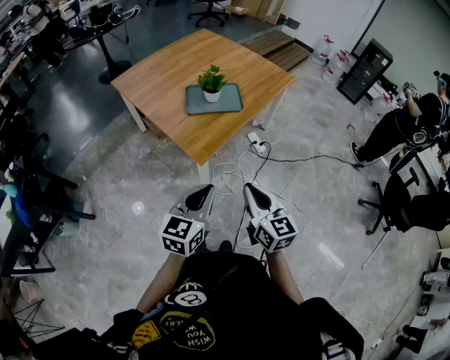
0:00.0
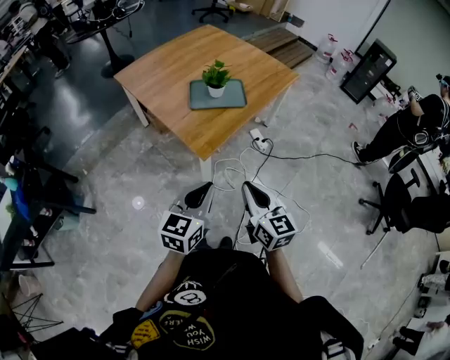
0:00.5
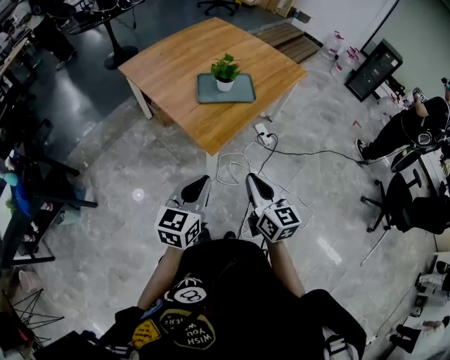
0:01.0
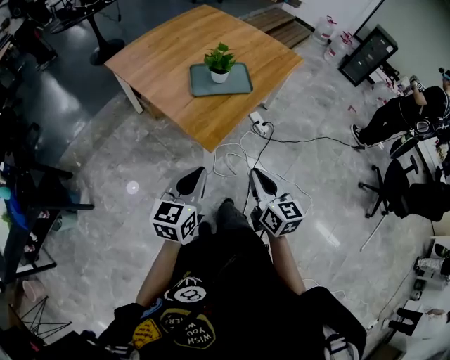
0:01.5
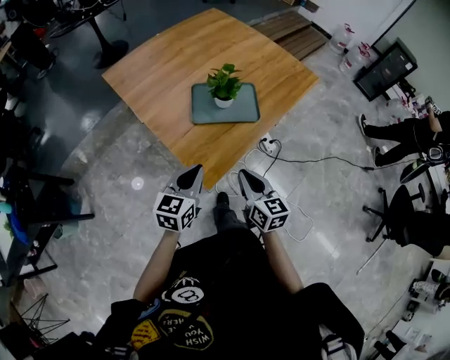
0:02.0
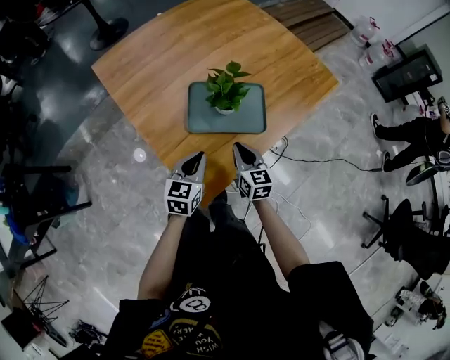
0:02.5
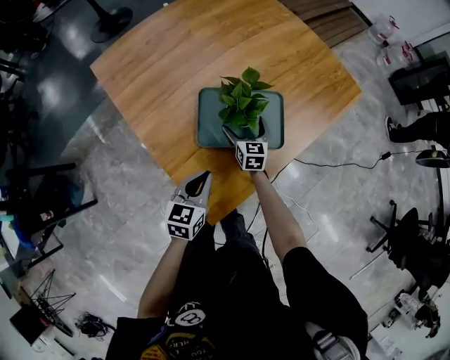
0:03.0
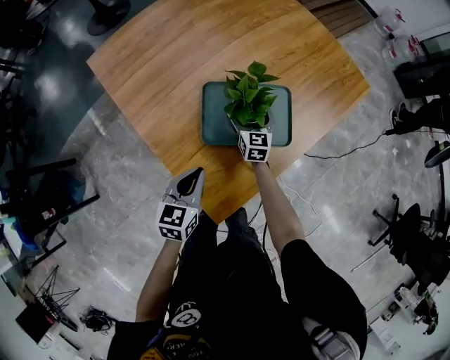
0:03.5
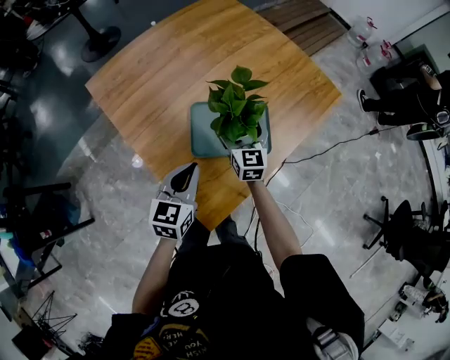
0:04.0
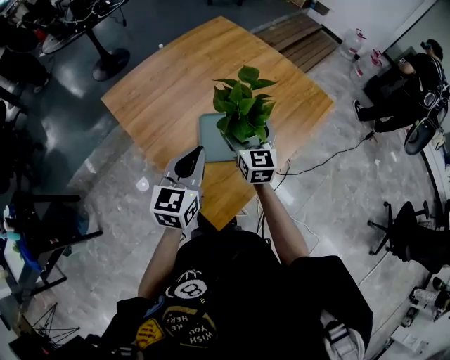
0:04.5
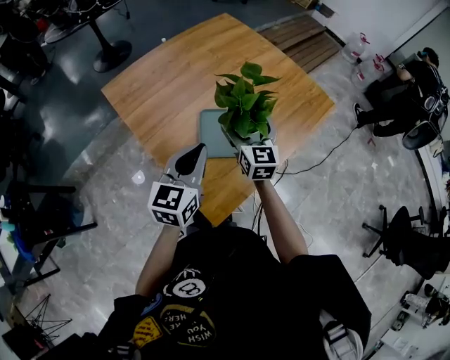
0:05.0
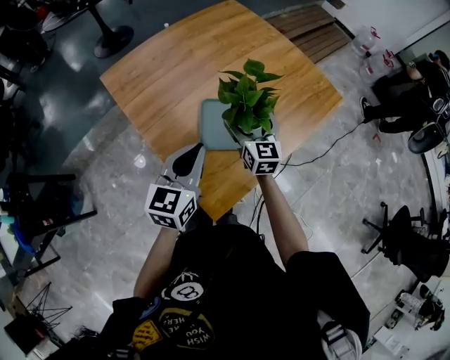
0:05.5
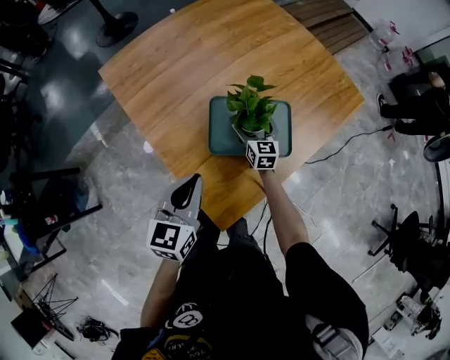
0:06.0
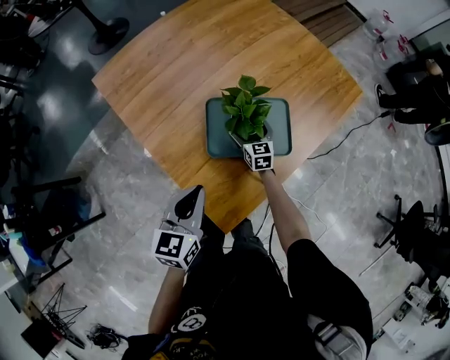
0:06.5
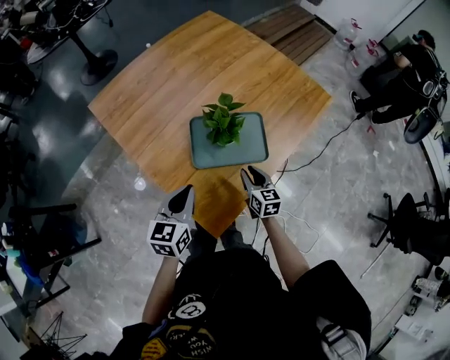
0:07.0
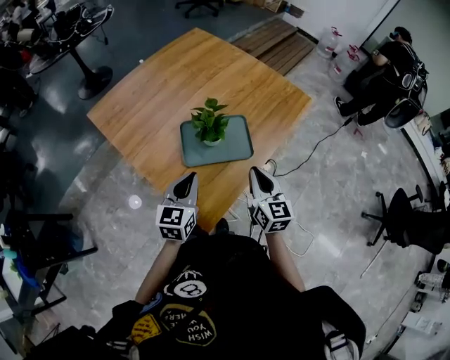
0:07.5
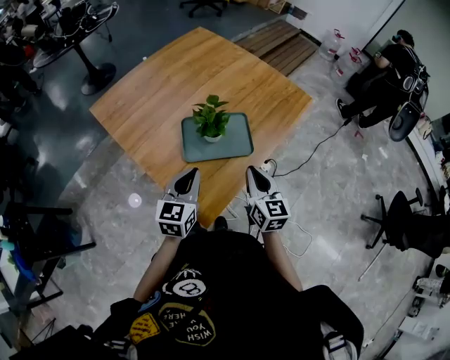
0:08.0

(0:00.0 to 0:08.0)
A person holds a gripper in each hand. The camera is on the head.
0:00.0 - 0:02.0: The right gripper goes some 25 cm forward and downward; the left gripper moves forward, about 25 cm.
0:02.0 - 0:04.0: The left gripper goes about 20 cm forward. Meanwhile the right gripper is displaced forward by about 40 cm, and opens.
0:04.0 - 0:06.0: The left gripper travels upward and back again, approximately 10 cm each way. The right gripper heads downward, covering some 15 cm.
0:06.0 - 0:08.0: The right gripper moves backward, upward and to the right, roughly 35 cm, and closes; the left gripper shifts some 10 cm to the right.

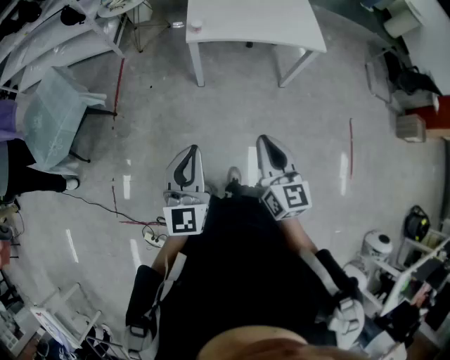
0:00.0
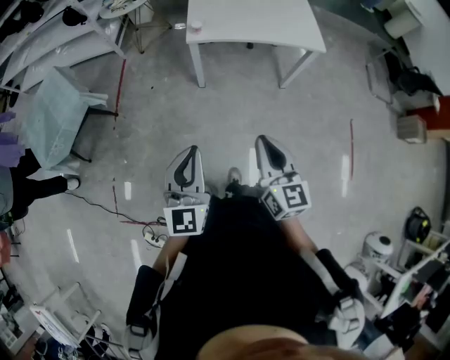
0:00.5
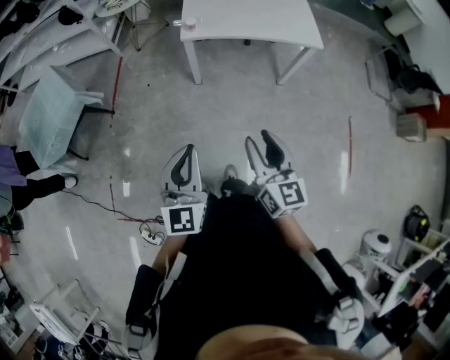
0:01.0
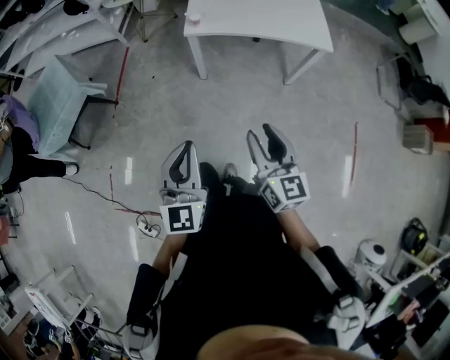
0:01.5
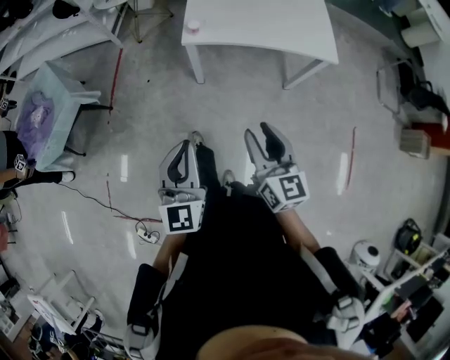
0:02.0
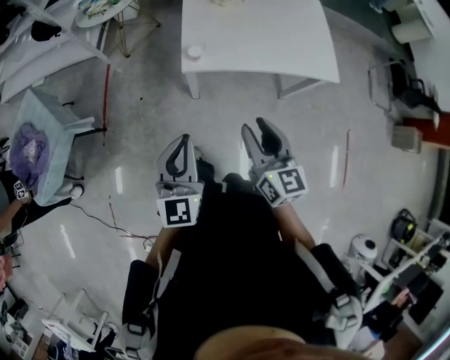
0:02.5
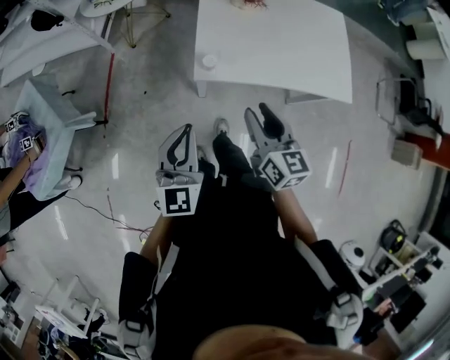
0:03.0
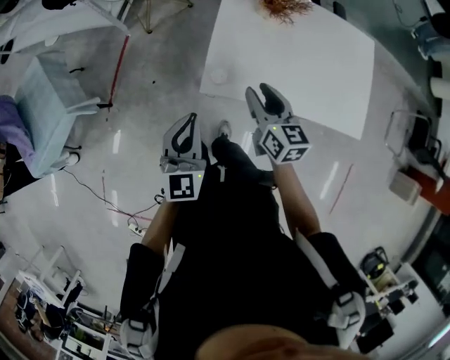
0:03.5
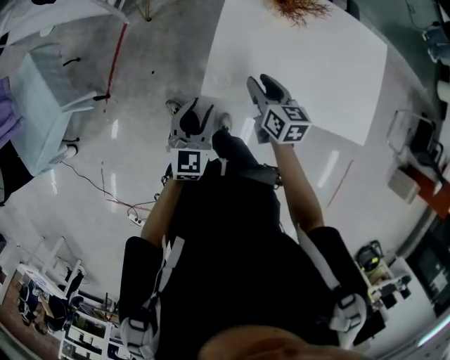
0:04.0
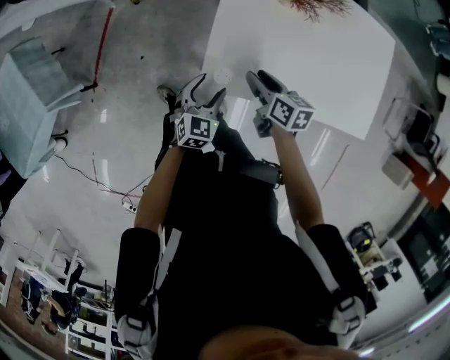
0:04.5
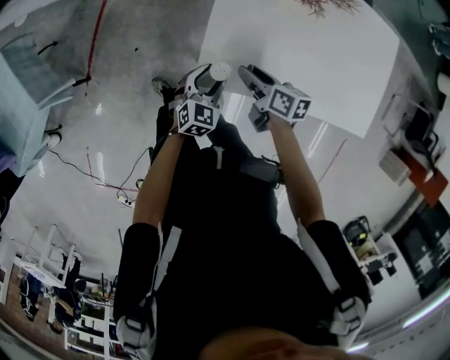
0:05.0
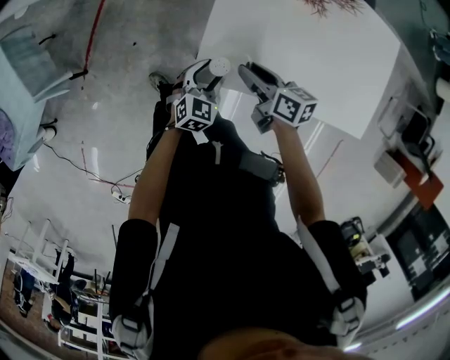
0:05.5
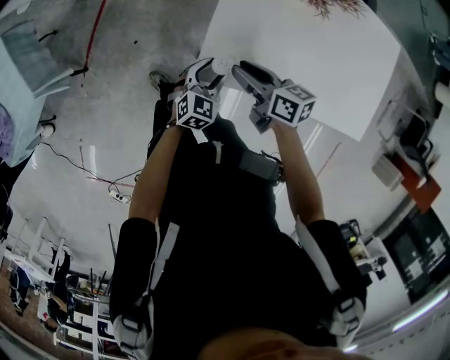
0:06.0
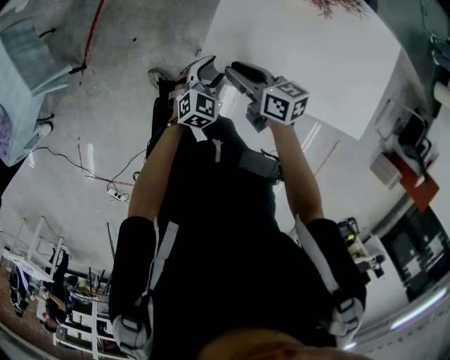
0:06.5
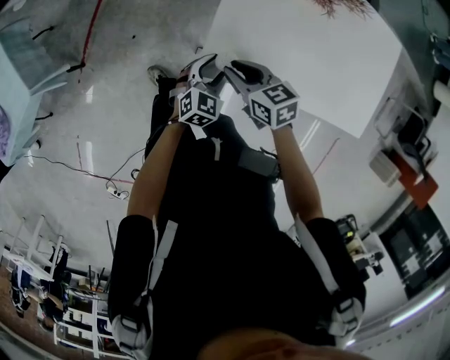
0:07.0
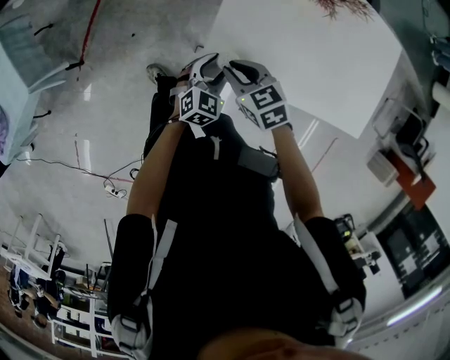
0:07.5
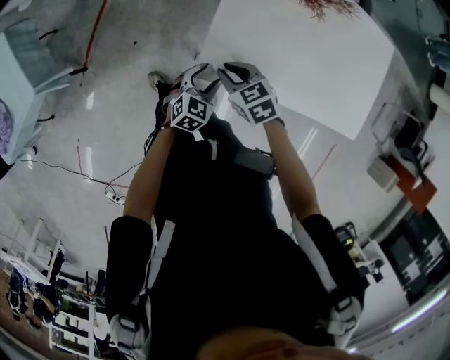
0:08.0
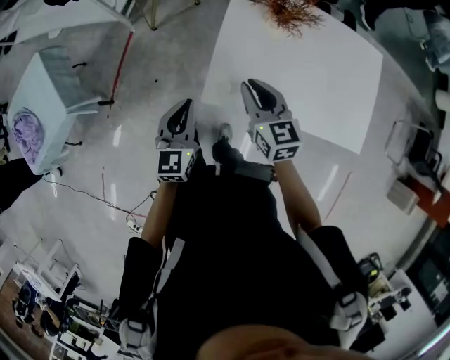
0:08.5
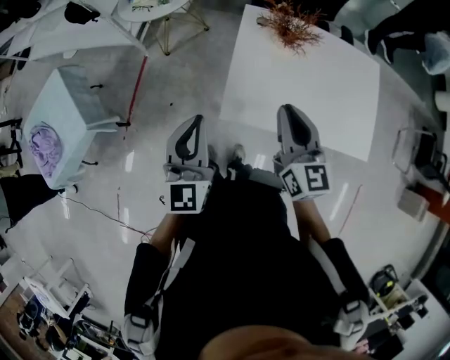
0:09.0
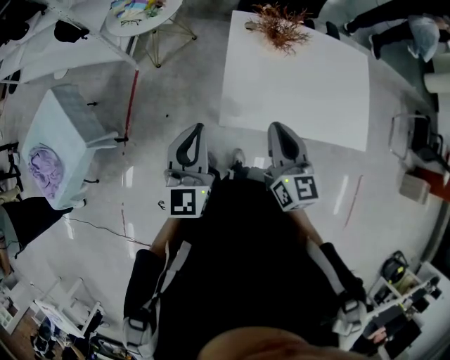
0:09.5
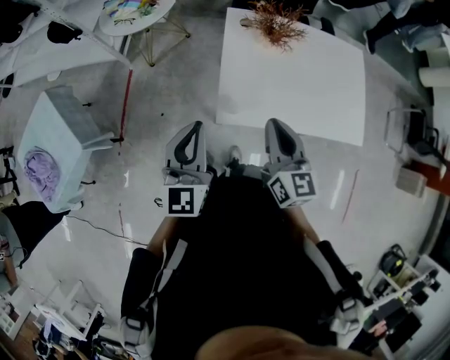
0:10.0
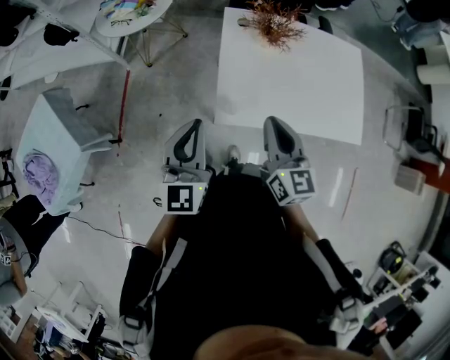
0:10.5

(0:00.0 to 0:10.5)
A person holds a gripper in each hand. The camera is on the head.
0:00.0 - 0:02.0: Both grippers travel together forward, about 15 cm. The right gripper opens.
0:02.0 - 0:04.0: The two grippers travel together, forward, some 50 cm. The right gripper rotates approximately 30 degrees. The left gripper opens up.
0:04.0 - 0:06.5: The left gripper goes about 15 cm downward, and turns by roughly 20 degrees. Meanwhile the right gripper goes some 10 cm to the left and downward, and changes its angle by some 30 degrees.
0:06.5 - 0:08.5: The right gripper moves upward, approximately 15 cm, and rotates some 40 degrees. The left gripper travels upward and to the left by approximately 25 cm, turns by some 30 degrees, and closes up.
0:08.5 - 0:10.5: The right gripper heads upward and backward, covering approximately 15 cm, and changes its angle by about 20 degrees; the left gripper is displaced upward by approximately 15 cm.

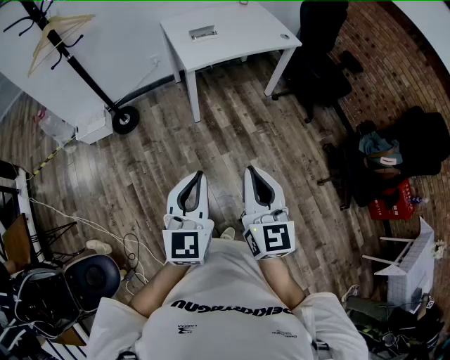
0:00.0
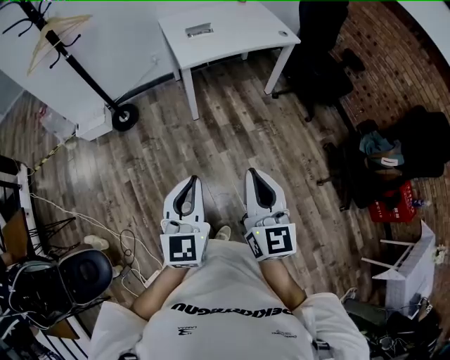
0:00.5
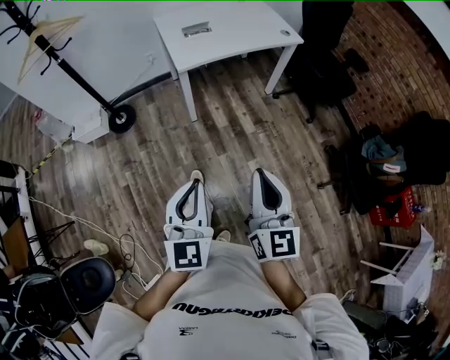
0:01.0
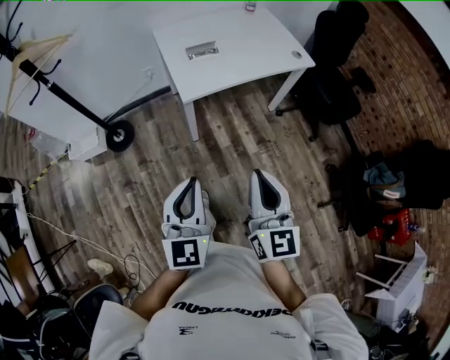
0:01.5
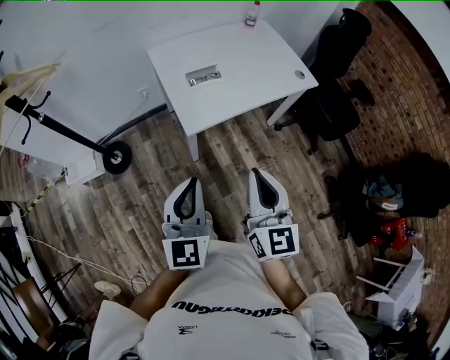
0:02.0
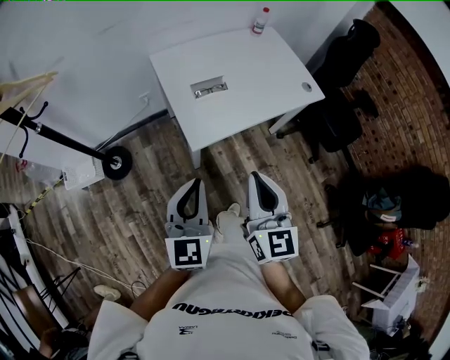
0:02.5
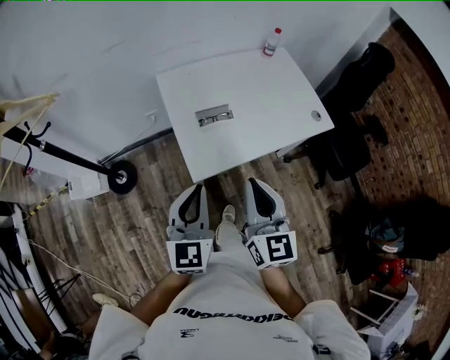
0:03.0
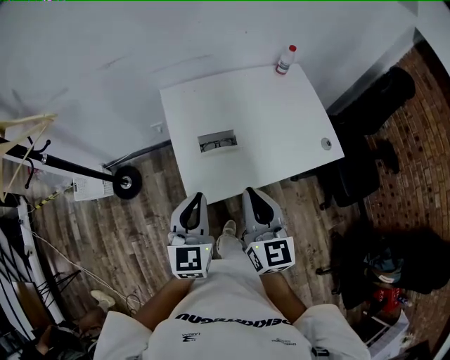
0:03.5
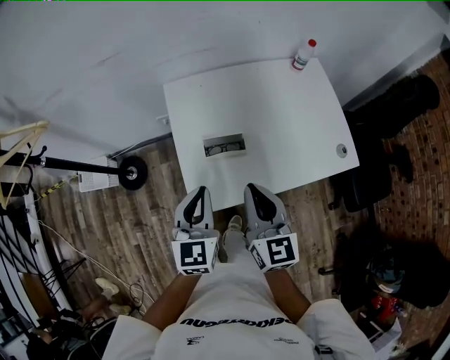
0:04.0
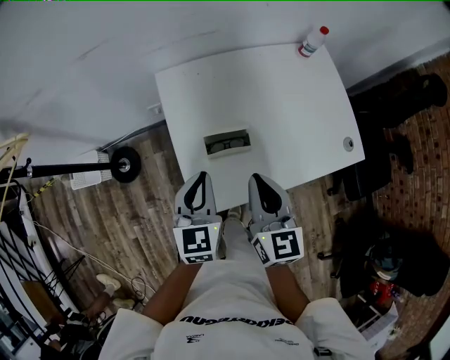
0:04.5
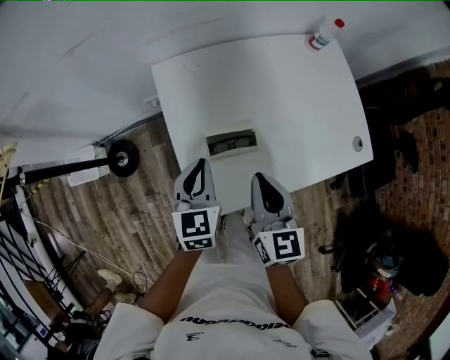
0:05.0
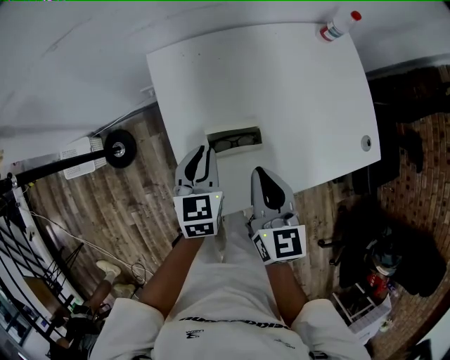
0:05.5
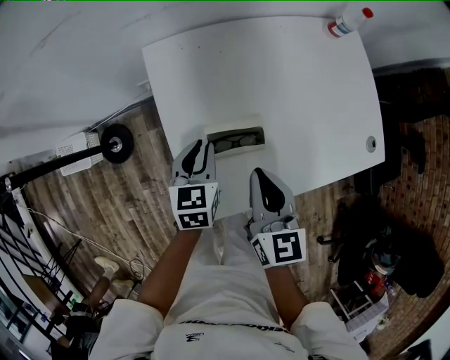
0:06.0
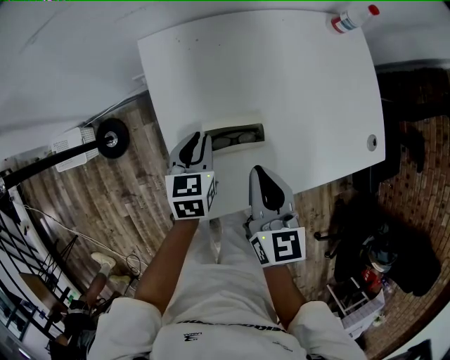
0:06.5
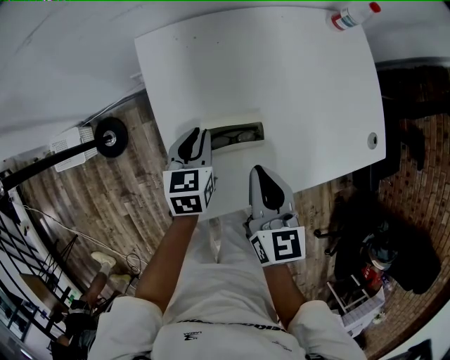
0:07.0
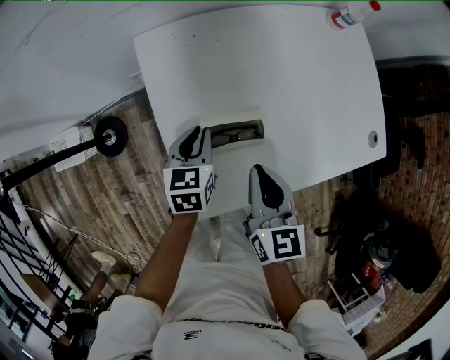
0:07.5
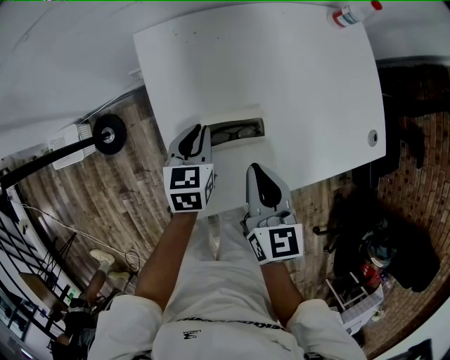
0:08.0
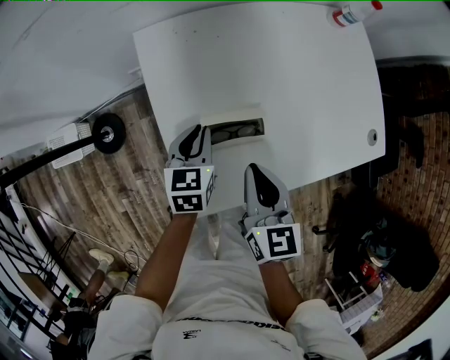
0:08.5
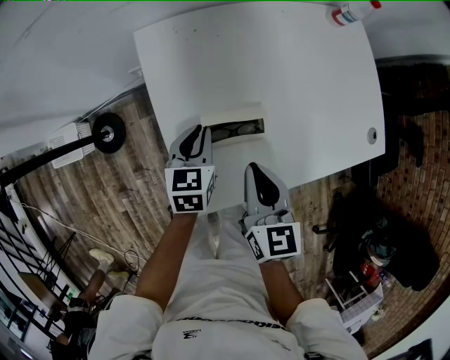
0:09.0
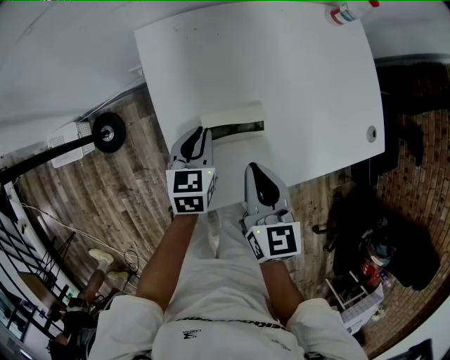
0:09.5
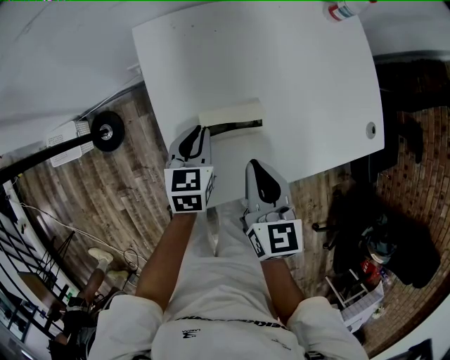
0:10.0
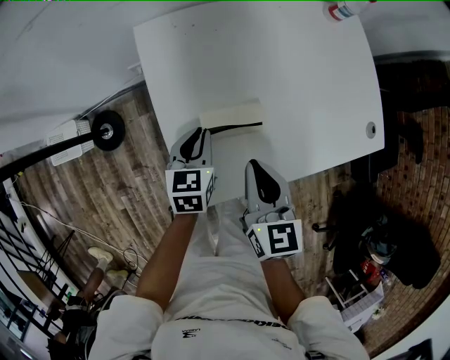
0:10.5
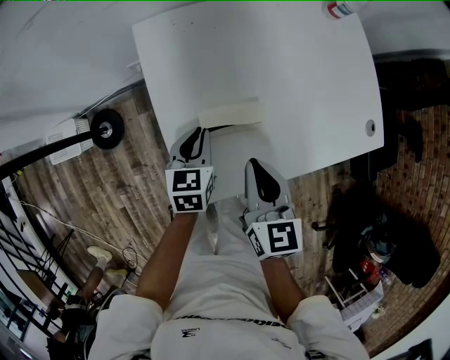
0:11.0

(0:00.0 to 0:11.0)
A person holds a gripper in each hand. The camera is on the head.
0:00.0 - 0:02.0: Both grippers are carried forward, approximately 40 cm.
0:02.0 - 0:03.5: The grippers both shift forward by about 30 cm.
0:03.5 - 0:05.5: The grippers both shift forward and downward by about 30 cm. The left gripper turns by some 20 degrees.
0:05.5 - 0:07.5: The grippers both shift downward by roughly 5 cm.
0:07.5 - 0:11.0: The grippers make only small movements.
